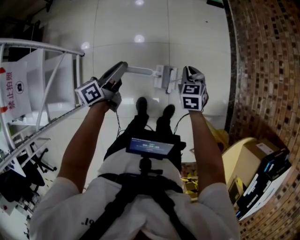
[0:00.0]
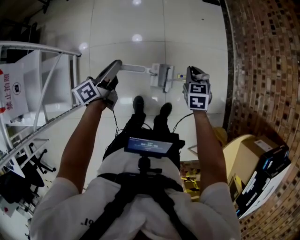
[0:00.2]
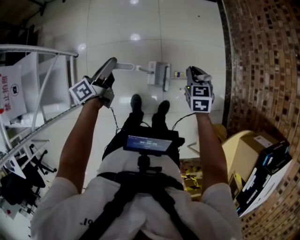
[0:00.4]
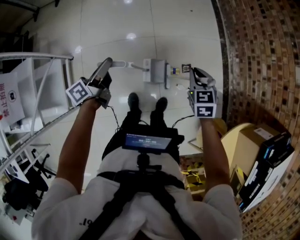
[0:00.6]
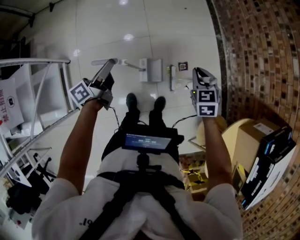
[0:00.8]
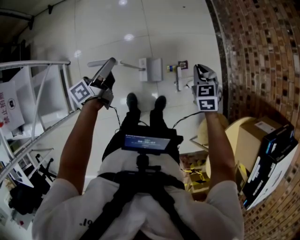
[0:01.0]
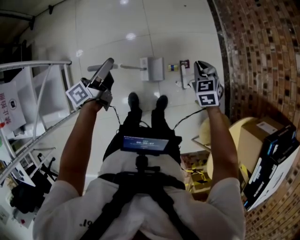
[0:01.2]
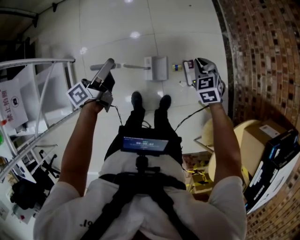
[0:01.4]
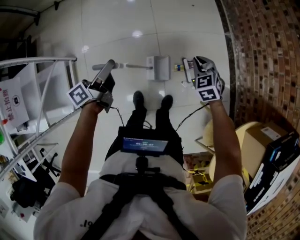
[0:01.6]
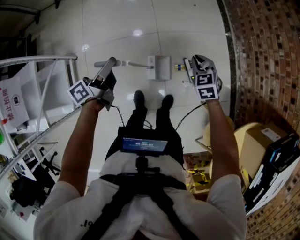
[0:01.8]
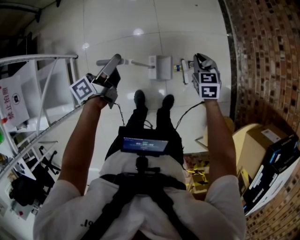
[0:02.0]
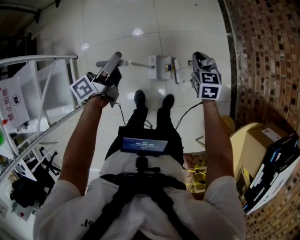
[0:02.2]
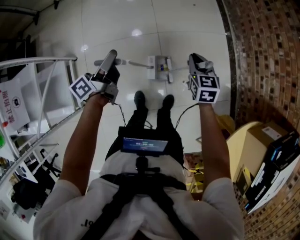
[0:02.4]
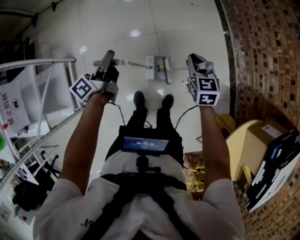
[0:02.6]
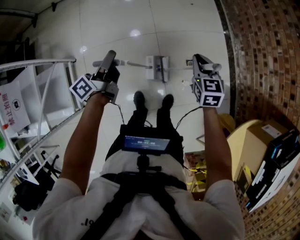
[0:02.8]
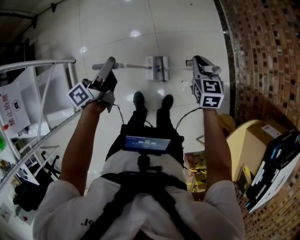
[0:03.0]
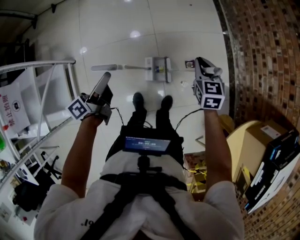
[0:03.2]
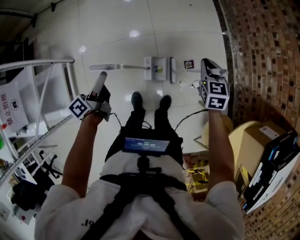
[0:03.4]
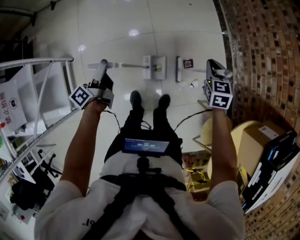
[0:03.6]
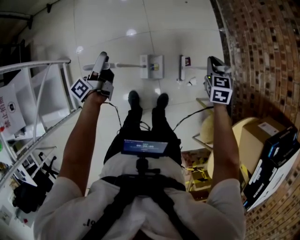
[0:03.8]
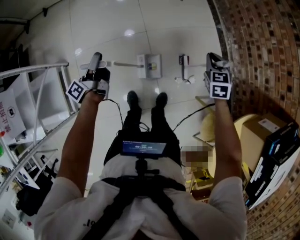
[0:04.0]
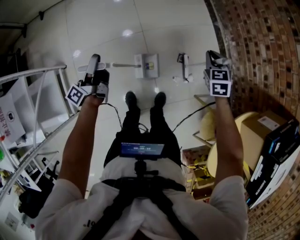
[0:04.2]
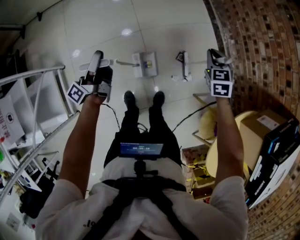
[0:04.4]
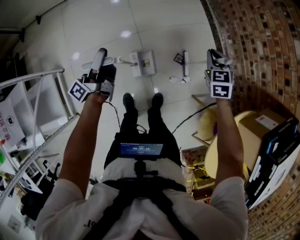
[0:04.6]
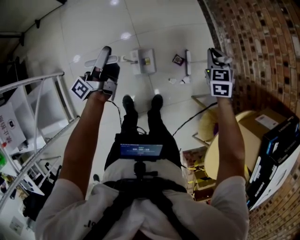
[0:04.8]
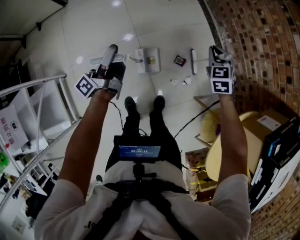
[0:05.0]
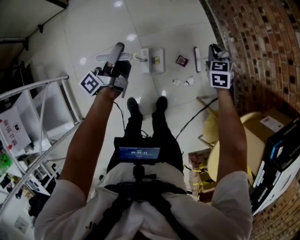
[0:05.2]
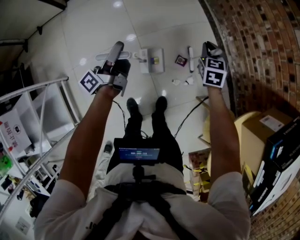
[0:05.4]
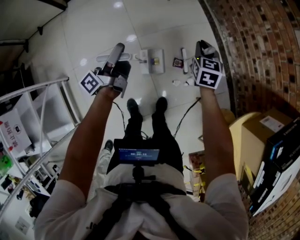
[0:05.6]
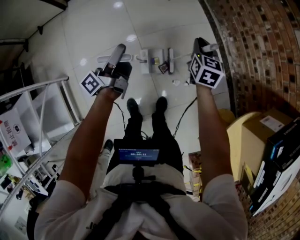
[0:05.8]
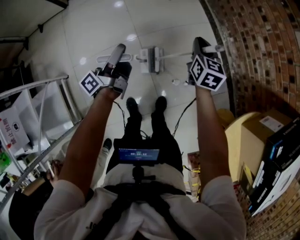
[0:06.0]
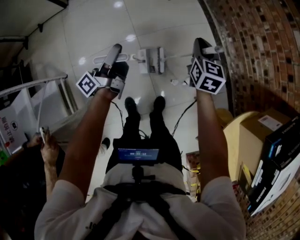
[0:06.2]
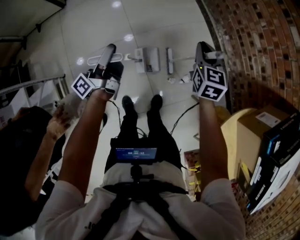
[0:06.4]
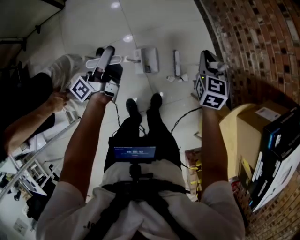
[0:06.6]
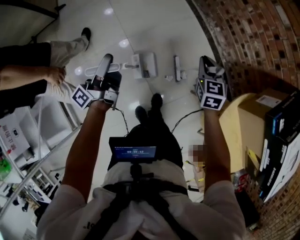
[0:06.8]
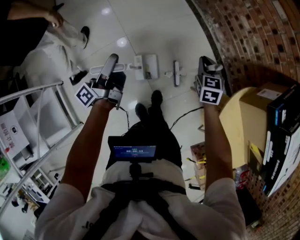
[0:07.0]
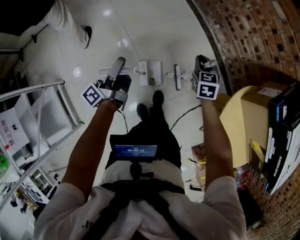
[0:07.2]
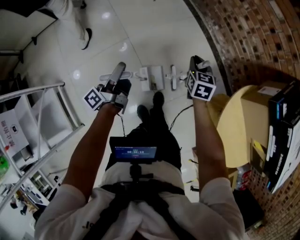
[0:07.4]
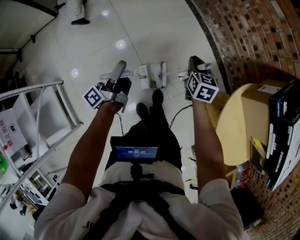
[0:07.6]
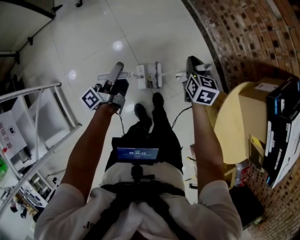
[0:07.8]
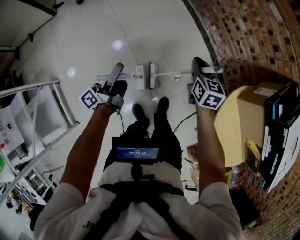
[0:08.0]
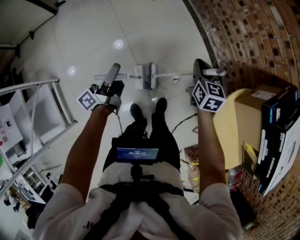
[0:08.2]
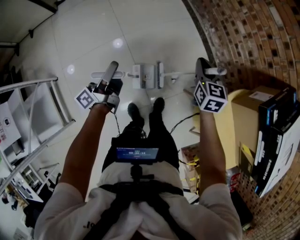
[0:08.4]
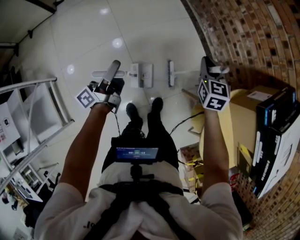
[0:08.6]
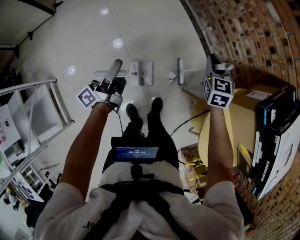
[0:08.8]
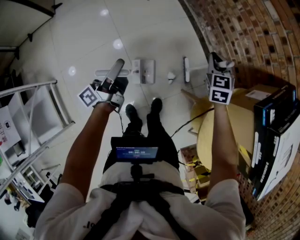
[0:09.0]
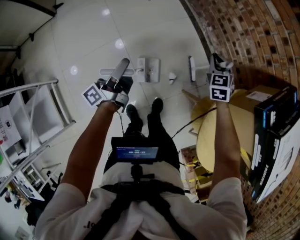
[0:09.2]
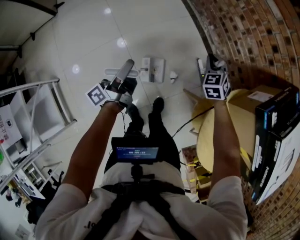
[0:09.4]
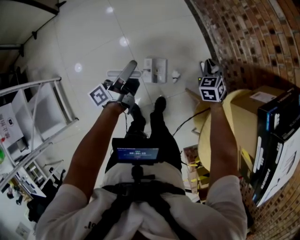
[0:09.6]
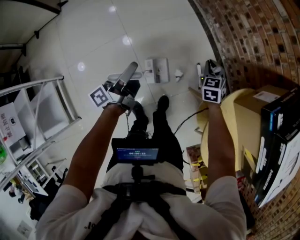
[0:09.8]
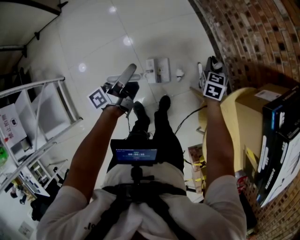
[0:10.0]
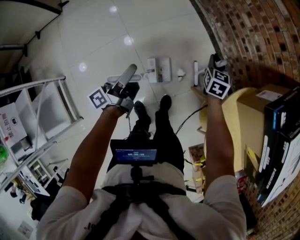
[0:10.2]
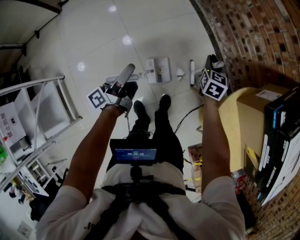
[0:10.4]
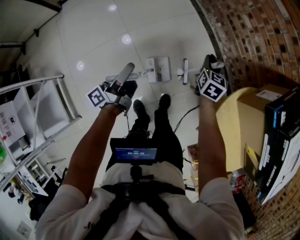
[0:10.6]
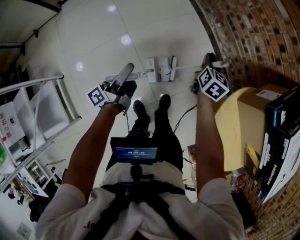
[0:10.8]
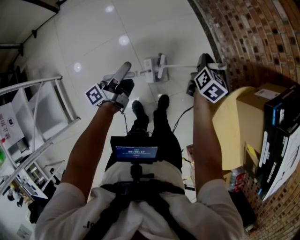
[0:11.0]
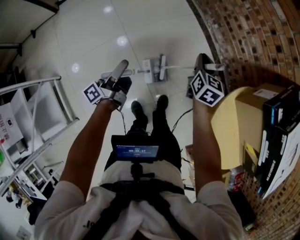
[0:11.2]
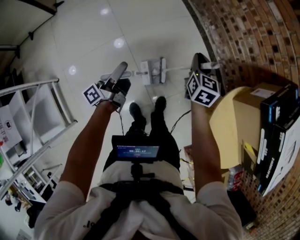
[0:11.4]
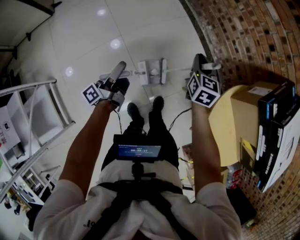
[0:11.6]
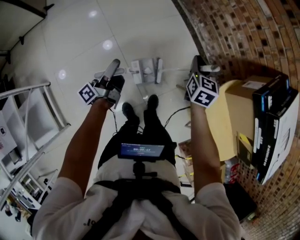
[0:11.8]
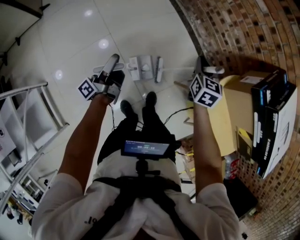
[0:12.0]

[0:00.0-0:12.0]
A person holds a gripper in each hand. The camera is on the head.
0:00.0 to 0:01.6: The right gripper changes place by approximately 15 cm.
0:01.6 to 0:03.0: The right gripper travels upward by roughly 5 cm, and swivels roughly 30 degrees.
0:03.0 to 0:04.4: The right gripper shifts by some 15 cm.
0:04.4 to 0:06.0: The right gripper swivels about 40 degrees.
0:06.0 to 0:07.6: The right gripper changes place by roughly 20 cm.
0:07.6 to 0:09.0: The right gripper moves approximately 15 cm, and changes its angle by some 30 degrees.
0:09.0 to 0:10.4: The right gripper travels downward by roughly 10 cm, and turns by about 20 degrees.
0:10.4 to 0:12.0: The right gripper moves upward, about 10 cm.

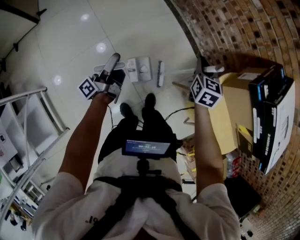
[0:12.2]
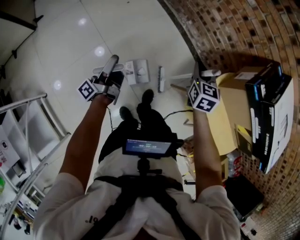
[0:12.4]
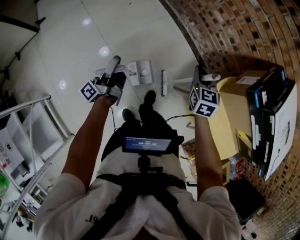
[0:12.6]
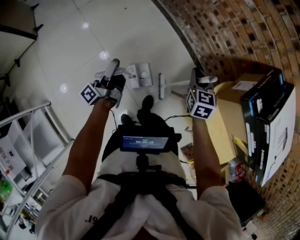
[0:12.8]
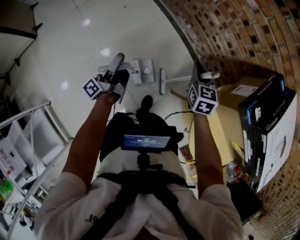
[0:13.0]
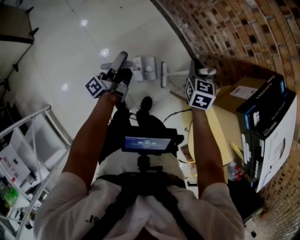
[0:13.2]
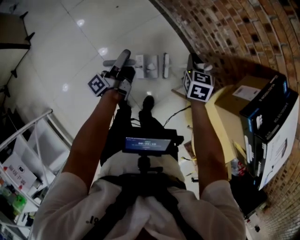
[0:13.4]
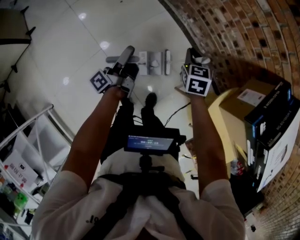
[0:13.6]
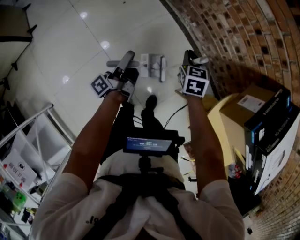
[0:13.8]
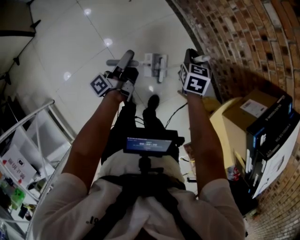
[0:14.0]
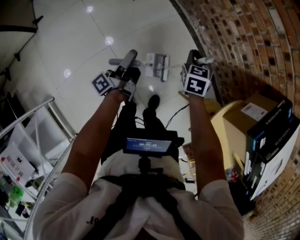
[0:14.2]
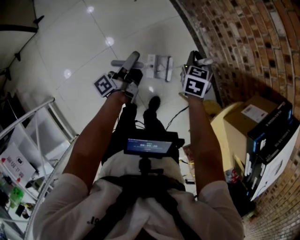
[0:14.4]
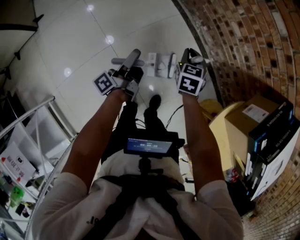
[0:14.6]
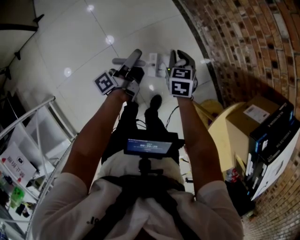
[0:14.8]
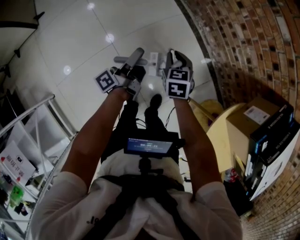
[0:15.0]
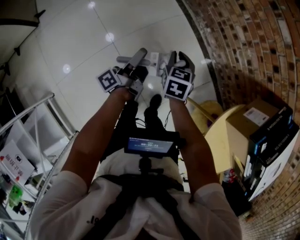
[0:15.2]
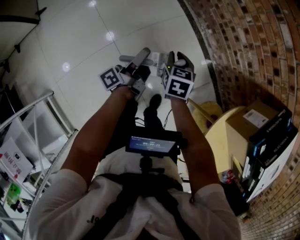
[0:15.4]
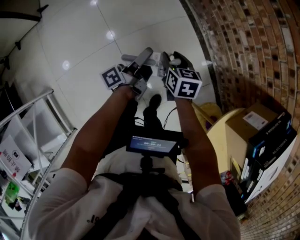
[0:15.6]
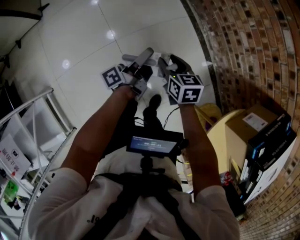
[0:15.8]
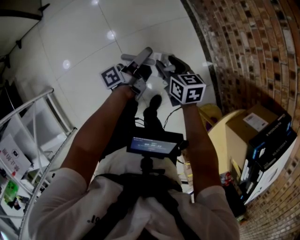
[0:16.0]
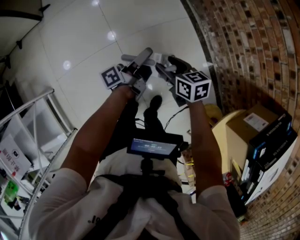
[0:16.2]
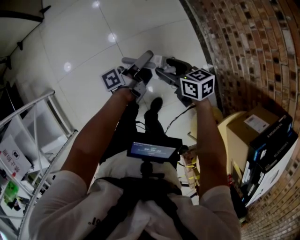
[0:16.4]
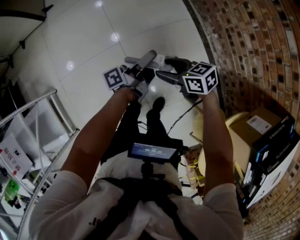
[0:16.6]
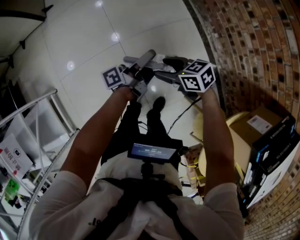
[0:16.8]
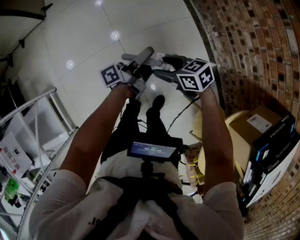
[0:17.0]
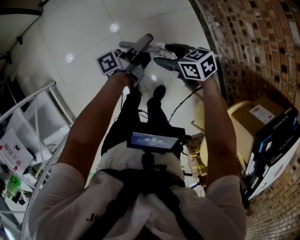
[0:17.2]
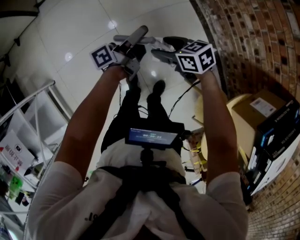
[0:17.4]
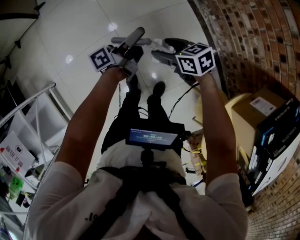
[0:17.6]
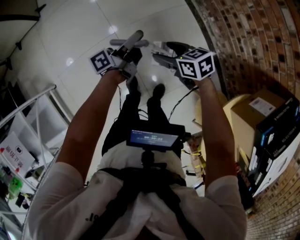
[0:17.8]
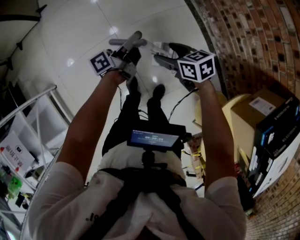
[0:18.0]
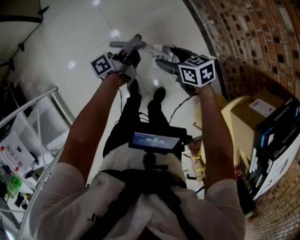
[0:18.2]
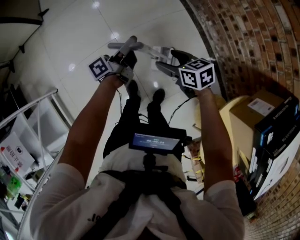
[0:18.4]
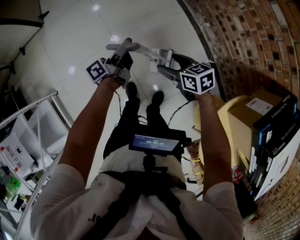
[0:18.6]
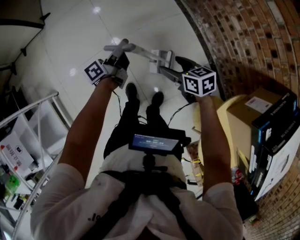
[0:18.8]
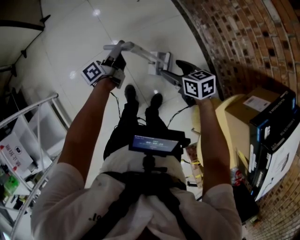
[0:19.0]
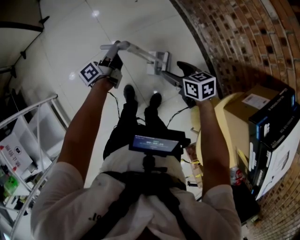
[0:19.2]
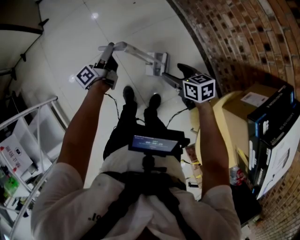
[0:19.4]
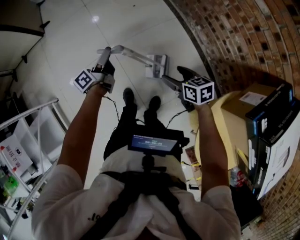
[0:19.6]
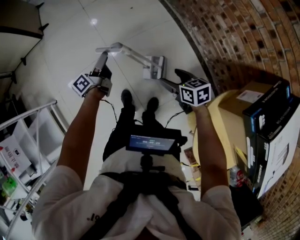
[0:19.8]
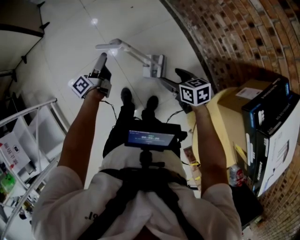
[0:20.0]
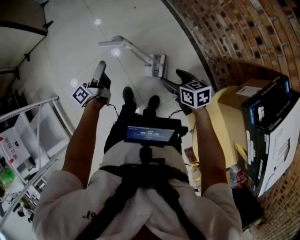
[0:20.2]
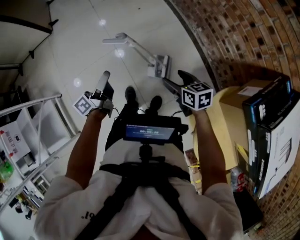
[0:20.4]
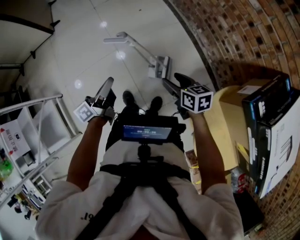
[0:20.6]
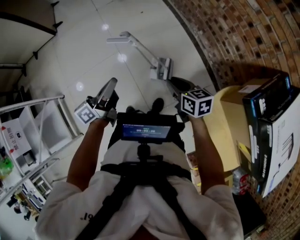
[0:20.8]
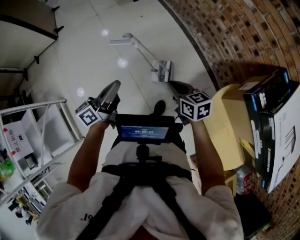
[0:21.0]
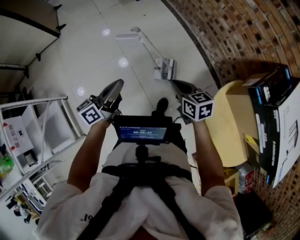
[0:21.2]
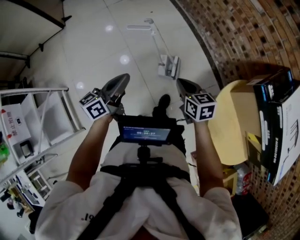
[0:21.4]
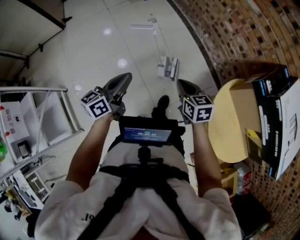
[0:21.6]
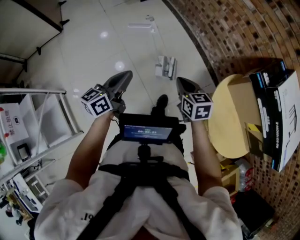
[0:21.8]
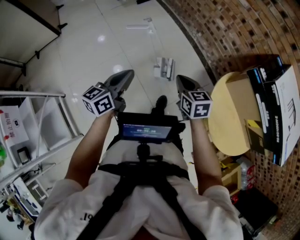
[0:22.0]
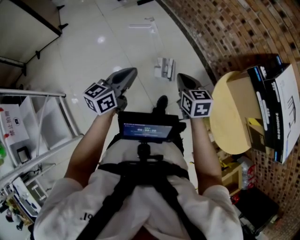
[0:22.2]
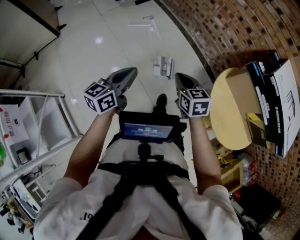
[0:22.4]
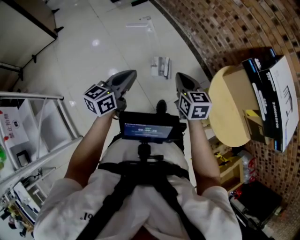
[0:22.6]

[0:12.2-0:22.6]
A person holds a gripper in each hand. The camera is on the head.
0:12.2 to 0:13.6: The right gripper moves about 20 cm.
0:13.6 to 0:15.2: The right gripper changes place by roughly 15 cm.
0:15.2 to 0:16.6: The right gripper ends up approximately 10 cm from where it was, rotates approximately 70 degrees, and opens its fingers.
0:16.6 to 0:18.2: The right gripper ends up some 5 cm from where it was.
0:18.2 to 0:19.6: The right gripper ends up about 10 cm from where it was.
0:19.6 to 0:21.2: The right gripper ends up approximately 15 cm from where it was, and closes its fingers.
0:21.2 to 0:22.6: The right gripper moves about 10 cm, and changes its angle by some 20 degrees.

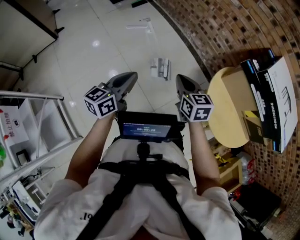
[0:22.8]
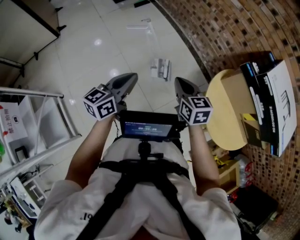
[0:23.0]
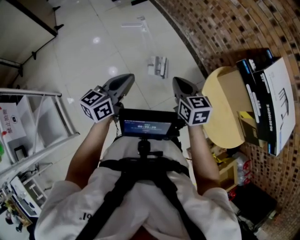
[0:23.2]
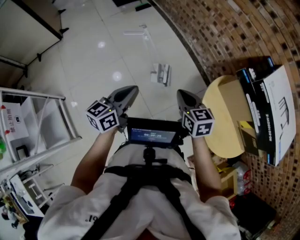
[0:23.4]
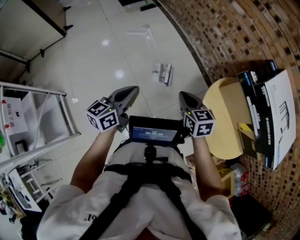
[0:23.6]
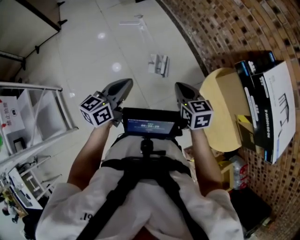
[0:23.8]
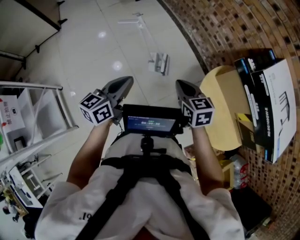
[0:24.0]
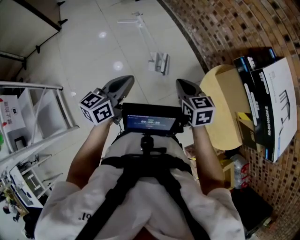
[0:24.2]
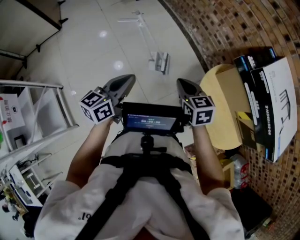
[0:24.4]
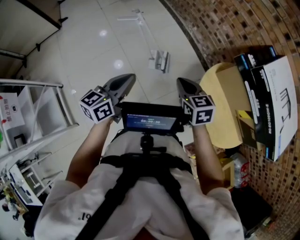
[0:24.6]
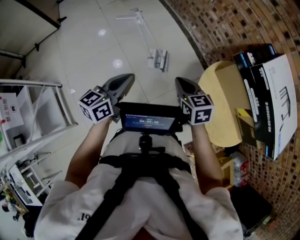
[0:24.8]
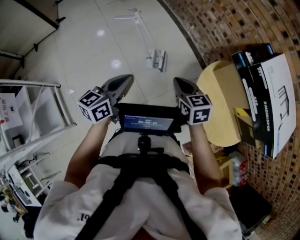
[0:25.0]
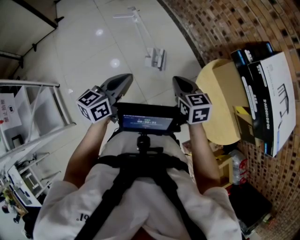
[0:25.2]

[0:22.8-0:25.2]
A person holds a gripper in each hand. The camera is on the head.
0:22.8 to 0:24.0: The right gripper ends up approximately 5 cm from where it was.
